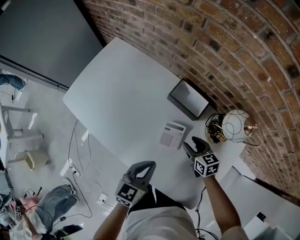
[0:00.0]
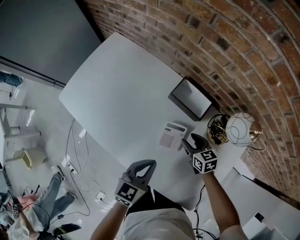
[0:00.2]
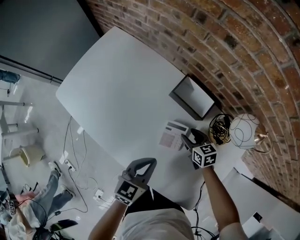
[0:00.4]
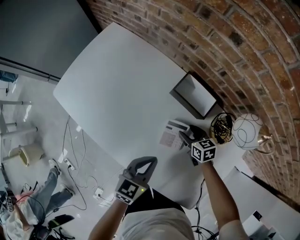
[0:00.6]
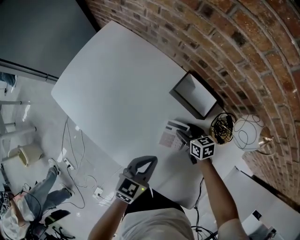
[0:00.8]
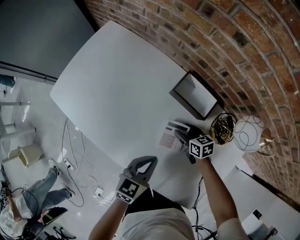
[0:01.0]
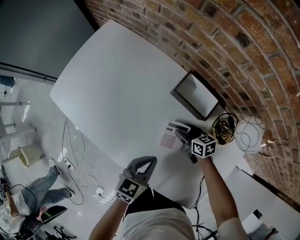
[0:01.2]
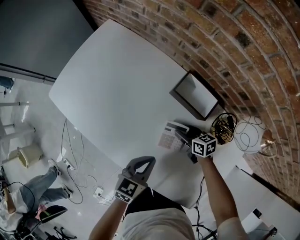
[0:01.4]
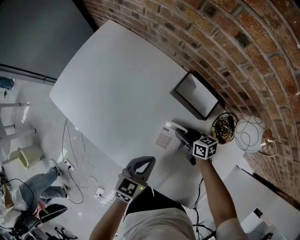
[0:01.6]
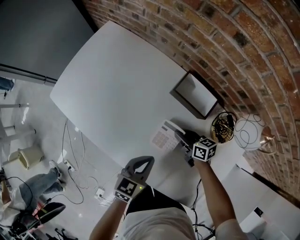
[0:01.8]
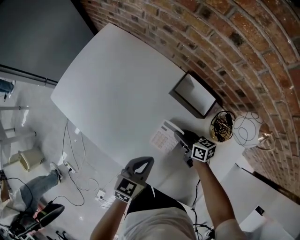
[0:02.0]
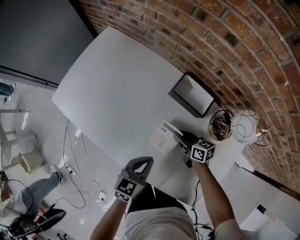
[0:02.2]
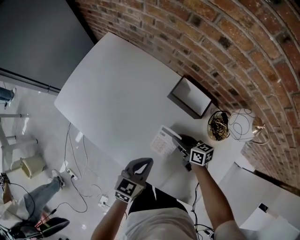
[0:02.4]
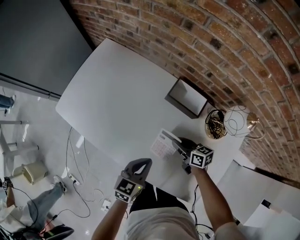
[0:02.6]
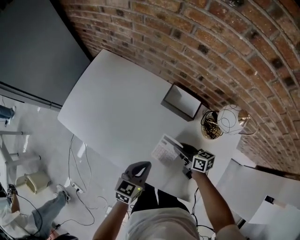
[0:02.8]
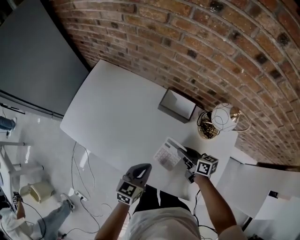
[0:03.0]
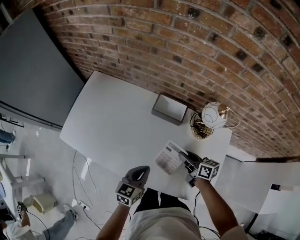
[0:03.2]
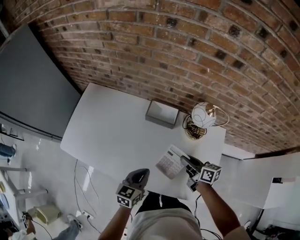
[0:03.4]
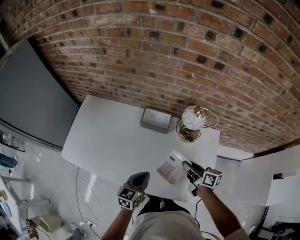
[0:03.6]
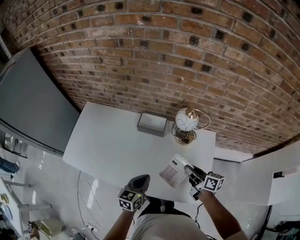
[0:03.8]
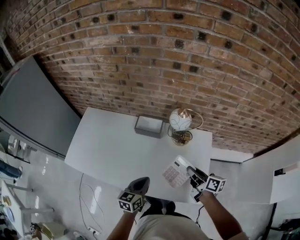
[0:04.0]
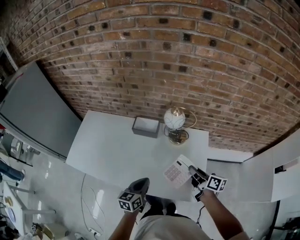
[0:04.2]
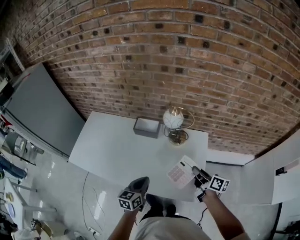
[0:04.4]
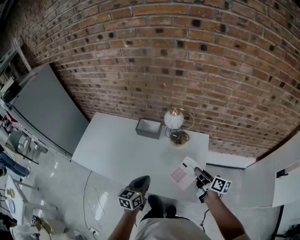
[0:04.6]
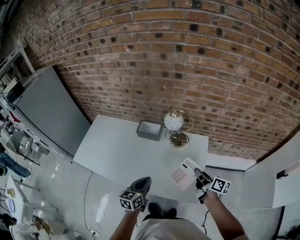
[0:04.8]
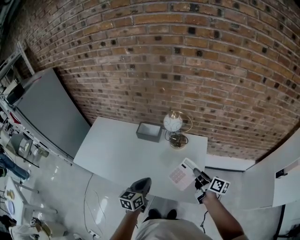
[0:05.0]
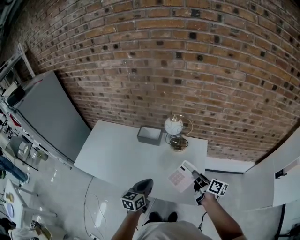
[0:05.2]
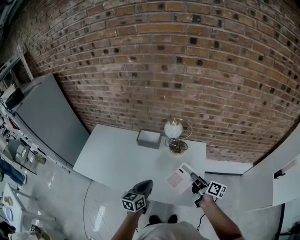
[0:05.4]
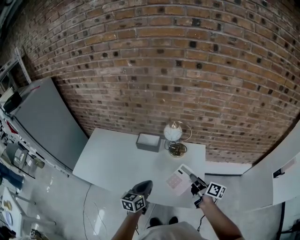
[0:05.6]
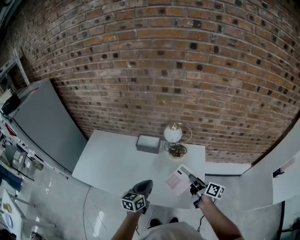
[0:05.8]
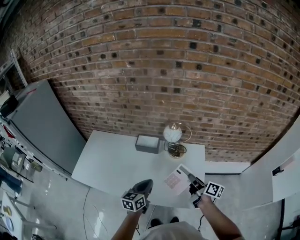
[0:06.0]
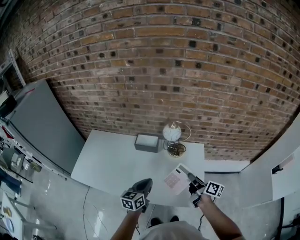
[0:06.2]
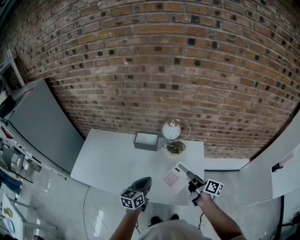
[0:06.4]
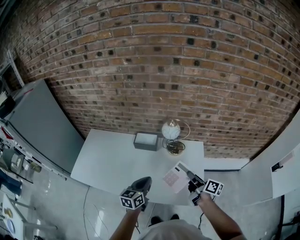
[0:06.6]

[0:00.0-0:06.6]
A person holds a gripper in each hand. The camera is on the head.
0.0 to 1.6 s: The left gripper shifts some 10 cm downward; the right gripper is displaced downward and to the left by some 10 cm, and swivels about 20 degrees.
1.6 to 3.2 s: The left gripper moves upward, about 10 cm. Meanwhile the right gripper shifts approximately 20 cm upward and backward, and turns by some 30 degrees.
3.2 to 5.0 s: The grippers both shift to the right, backward and upward by about 30 cm. The right gripper turns by some 30 degrees.
5.0 to 6.6 s: The right gripper travels to the left by approximately 5 cm. The left gripper ends up some 5 cm from where it was.

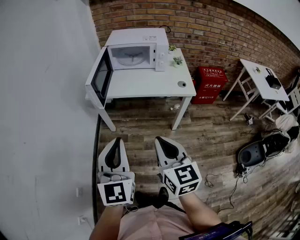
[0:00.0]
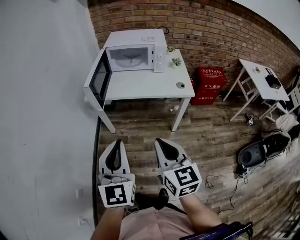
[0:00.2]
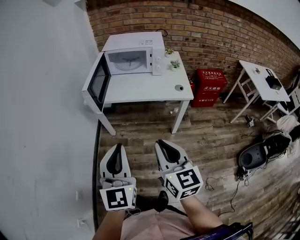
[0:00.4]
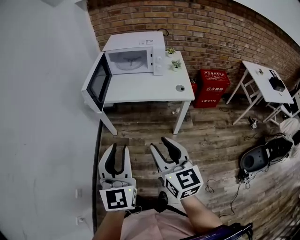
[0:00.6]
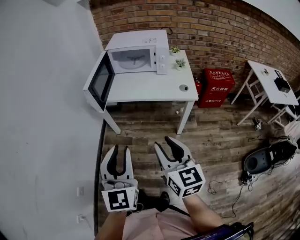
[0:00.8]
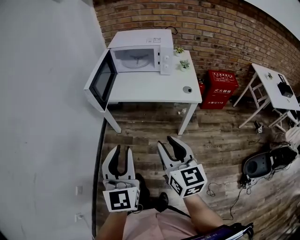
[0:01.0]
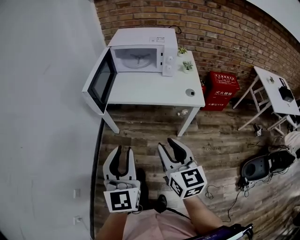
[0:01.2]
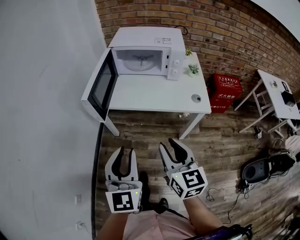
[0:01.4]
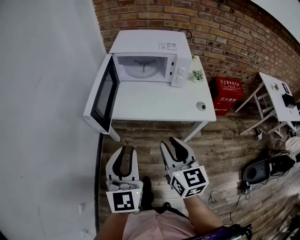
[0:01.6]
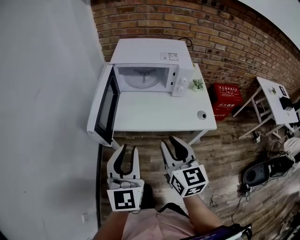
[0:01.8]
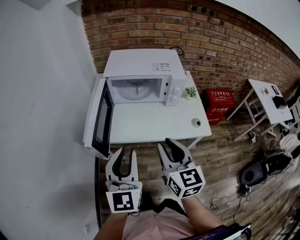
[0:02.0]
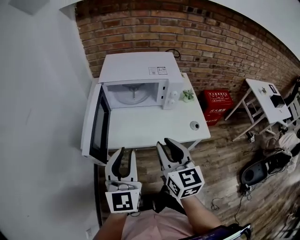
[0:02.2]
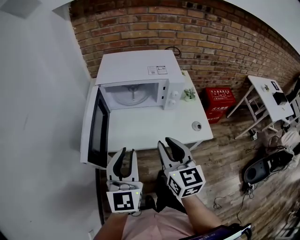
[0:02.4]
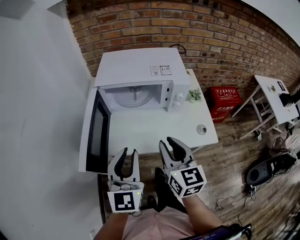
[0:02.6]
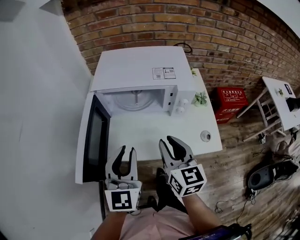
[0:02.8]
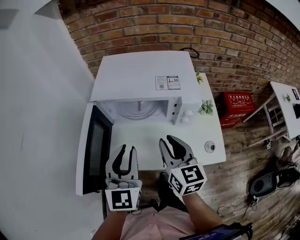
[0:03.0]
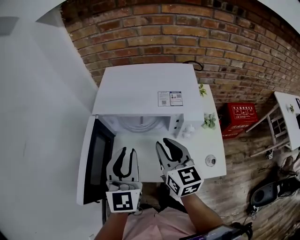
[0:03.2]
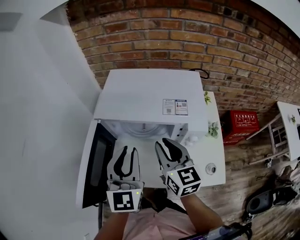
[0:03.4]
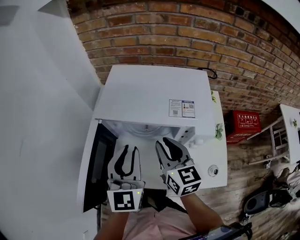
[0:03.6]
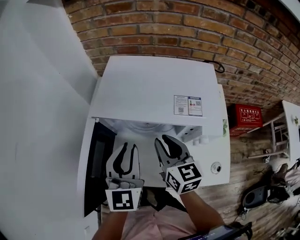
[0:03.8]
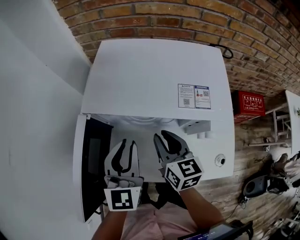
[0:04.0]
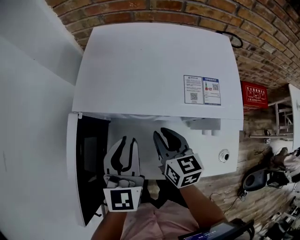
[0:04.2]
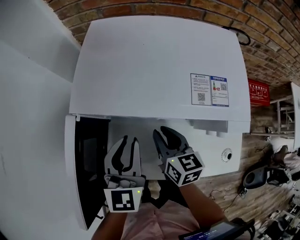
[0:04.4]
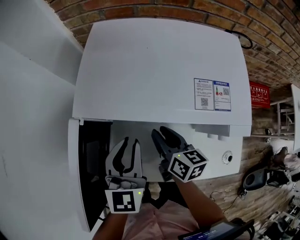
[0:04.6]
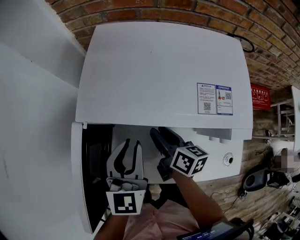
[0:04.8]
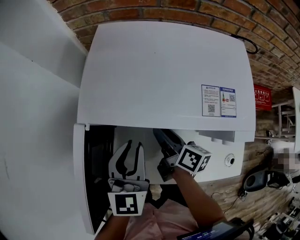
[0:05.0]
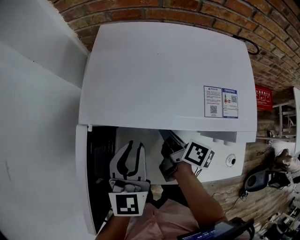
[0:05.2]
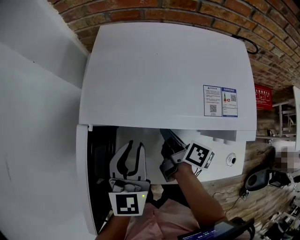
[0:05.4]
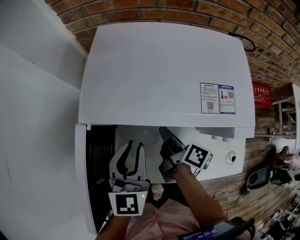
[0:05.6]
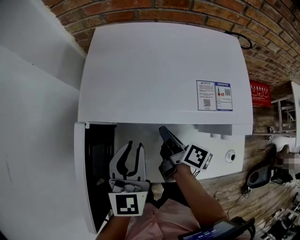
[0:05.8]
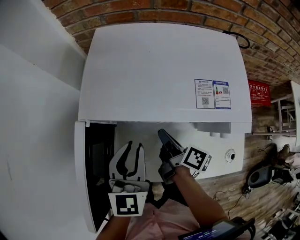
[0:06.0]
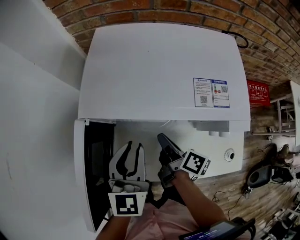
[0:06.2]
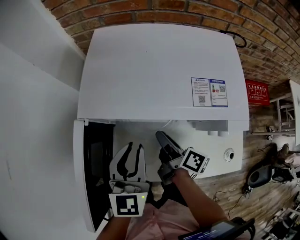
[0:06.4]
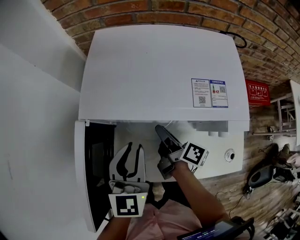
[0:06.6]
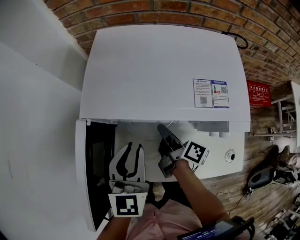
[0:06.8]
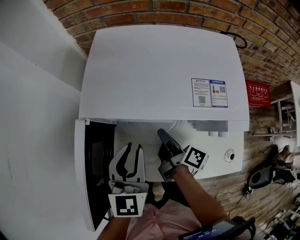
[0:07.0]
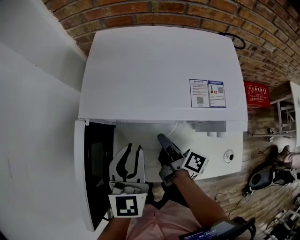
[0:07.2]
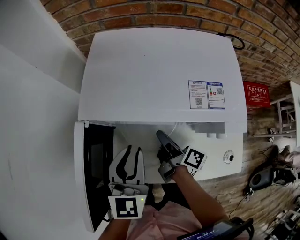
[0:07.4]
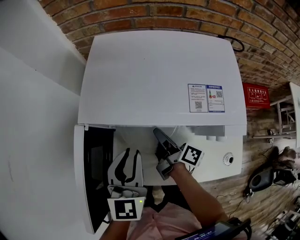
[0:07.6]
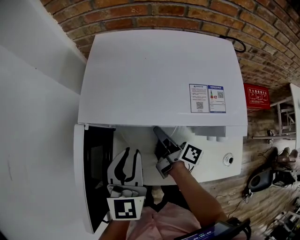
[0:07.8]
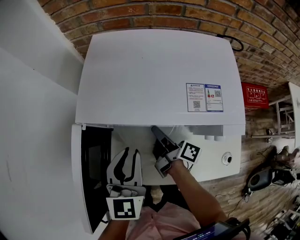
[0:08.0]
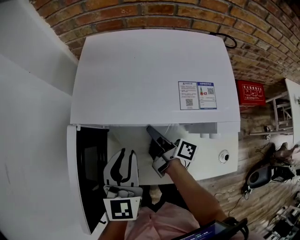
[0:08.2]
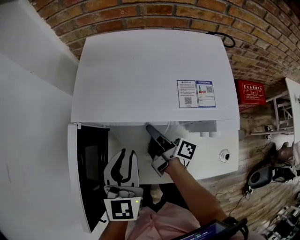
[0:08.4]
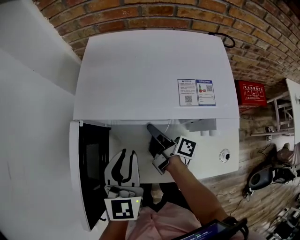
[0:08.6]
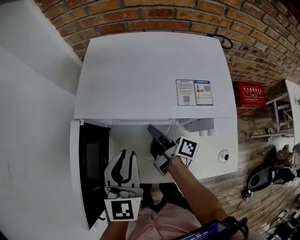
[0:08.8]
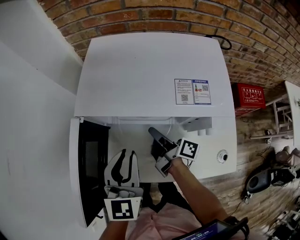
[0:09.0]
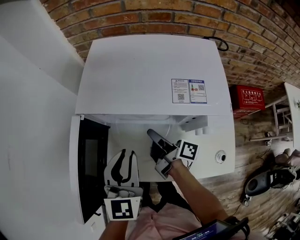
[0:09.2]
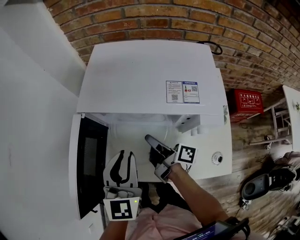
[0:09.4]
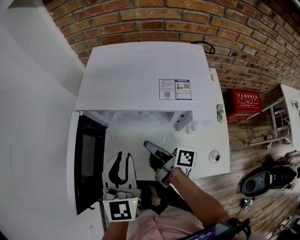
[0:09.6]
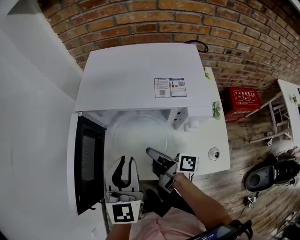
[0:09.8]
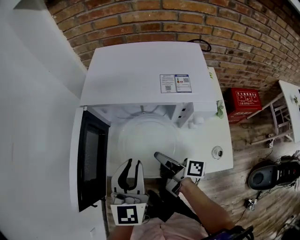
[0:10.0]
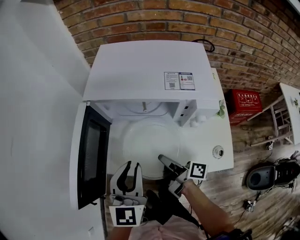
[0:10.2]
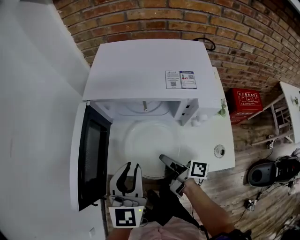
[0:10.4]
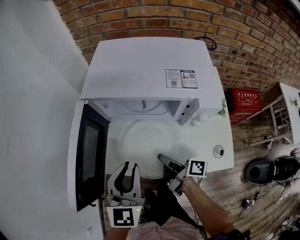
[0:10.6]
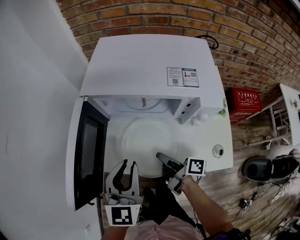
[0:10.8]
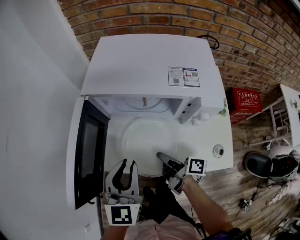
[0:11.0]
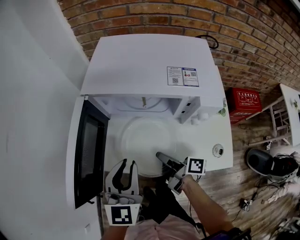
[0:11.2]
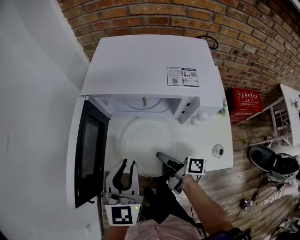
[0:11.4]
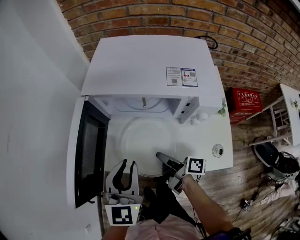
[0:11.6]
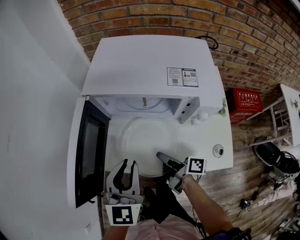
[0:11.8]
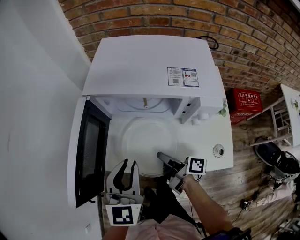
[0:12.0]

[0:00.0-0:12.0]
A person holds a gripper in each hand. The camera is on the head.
0.0 to 1.6 s: Both grippers move forward, roughly 20 cm. The left gripper opens its fingers; the right gripper opens.
1.6 to 3.0 s: The grippers both shift forward by roughly 30 cm.
3.0 to 4.4 s: The right gripper travels downward and forward by some 20 cm, and changes its angle by some 20 degrees. The left gripper is displaced forward and downward by about 15 cm.
4.4 to 6.0 s: The right gripper rotates around the line of its fingers by about 50 degrees, clockwise from behind.
6.0 to 7.6 s: The right gripper opens.
7.6 to 9.0 s: The right gripper closes.
9.0 to 10.4 s: The right gripper shifts roughly 15 cm backward. Meanwhile the left gripper heads backward, covering approximately 10 cm.
10.4 to 12.0 s: Both grippers stay about where they are.

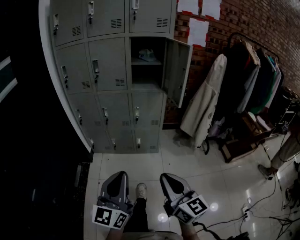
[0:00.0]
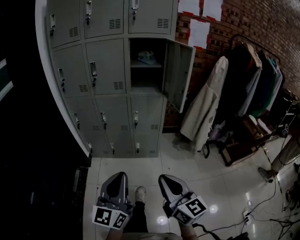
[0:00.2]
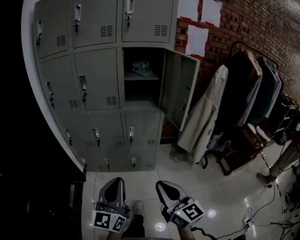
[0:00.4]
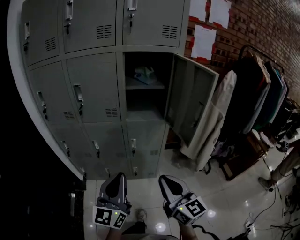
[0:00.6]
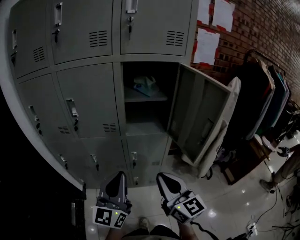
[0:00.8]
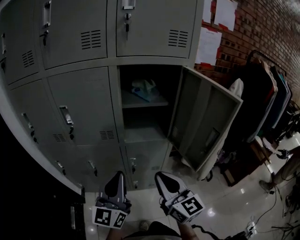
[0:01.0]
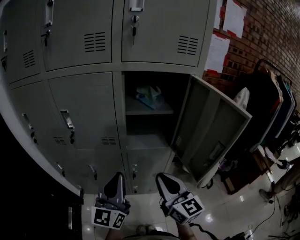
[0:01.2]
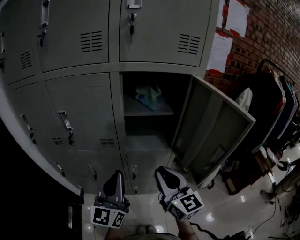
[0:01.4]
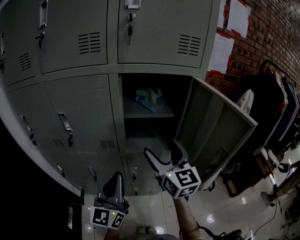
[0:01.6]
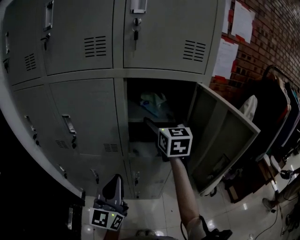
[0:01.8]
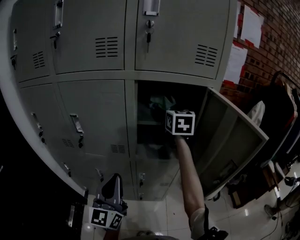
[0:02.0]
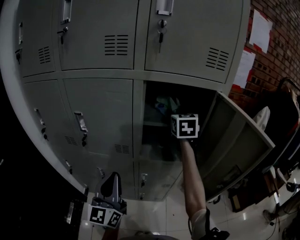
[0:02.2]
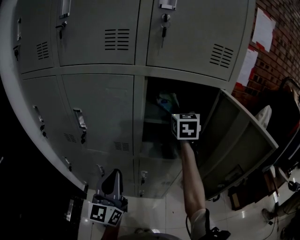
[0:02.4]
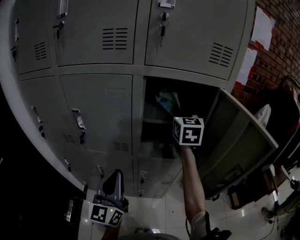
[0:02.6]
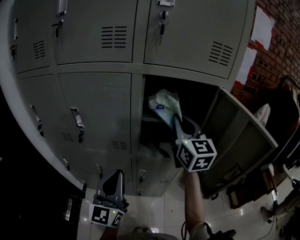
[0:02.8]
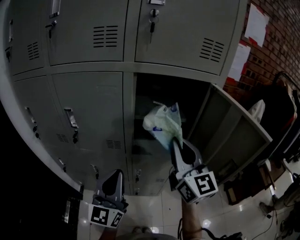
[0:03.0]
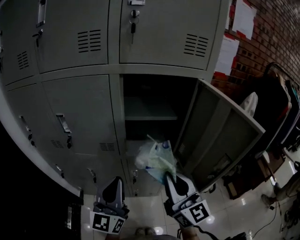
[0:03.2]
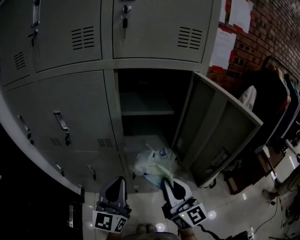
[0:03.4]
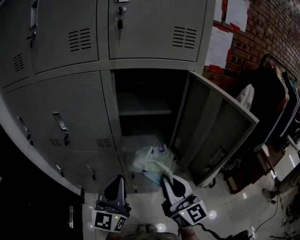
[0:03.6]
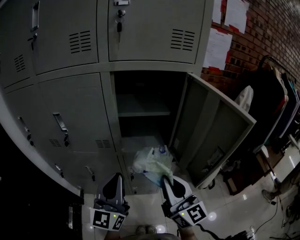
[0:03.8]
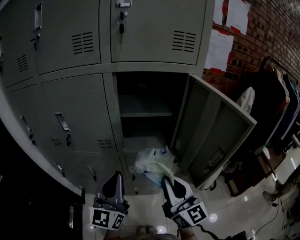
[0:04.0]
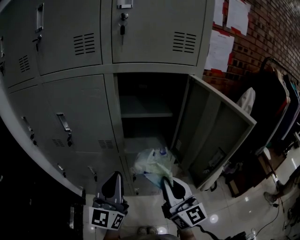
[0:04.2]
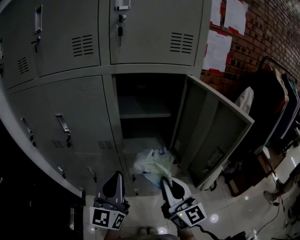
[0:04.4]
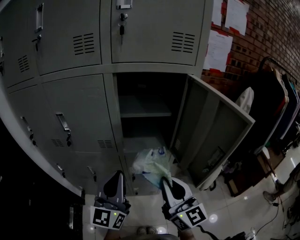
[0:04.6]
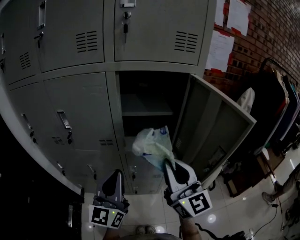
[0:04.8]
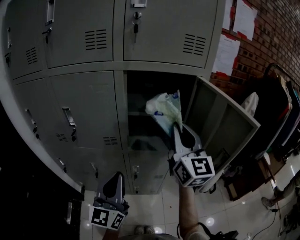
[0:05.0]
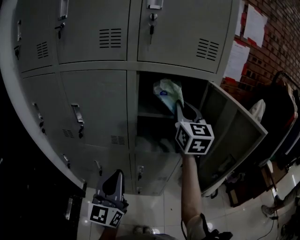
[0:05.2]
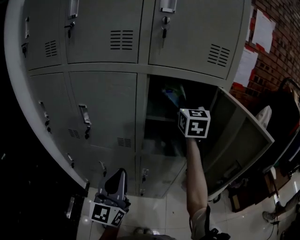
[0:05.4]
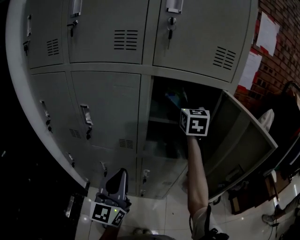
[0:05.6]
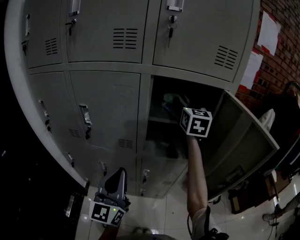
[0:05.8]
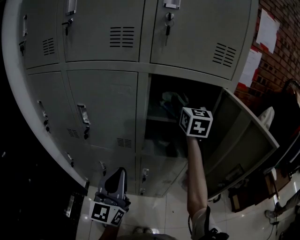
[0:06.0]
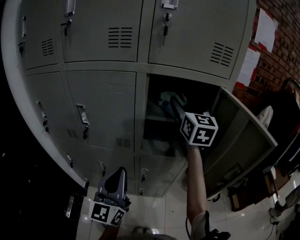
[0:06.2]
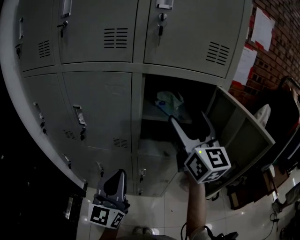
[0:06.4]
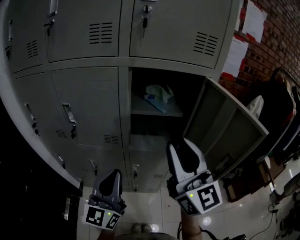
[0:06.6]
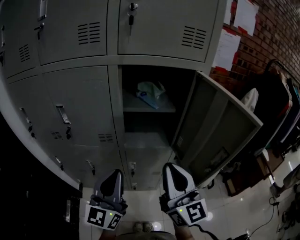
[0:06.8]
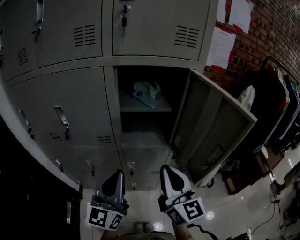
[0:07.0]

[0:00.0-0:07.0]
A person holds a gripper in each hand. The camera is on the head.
0.0 to 1.4 s: Both grippers are carried forward, roughly 50 cm.
1.4 to 2.8 s: The right gripper travels forward and upward by approximately 20 cm, and opens and closes again.
2.8 to 4.2 s: The right gripper goes about 25 cm backward and downward. Meanwhile the left gripper shifts by approximately 5 cm.
4.2 to 5.6 s: The left gripper ends up some 5 cm from where it was. The right gripper shifts some 35 cm forward and upward, and swivels some 30 degrees.
5.6 to 7.0 s: The left gripper moves to the right, some 5 cm, while the right gripper goes approximately 30 cm backward, changes its angle by roughly 30 degrees, and opens and closes again.
